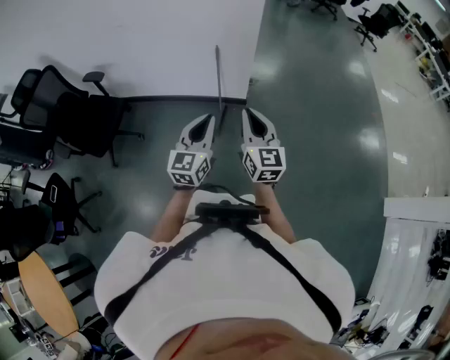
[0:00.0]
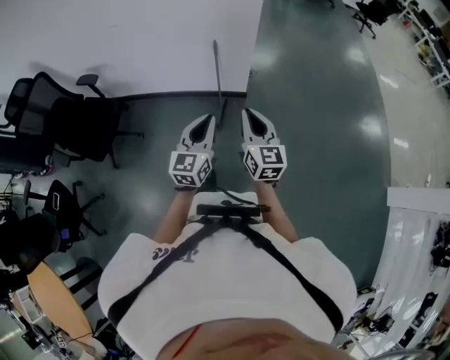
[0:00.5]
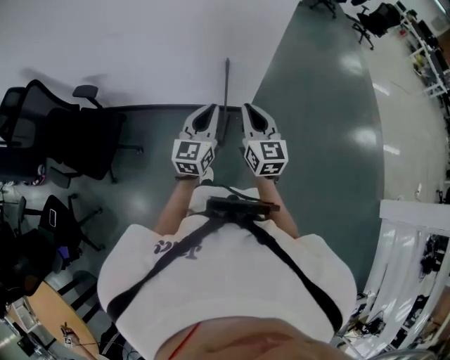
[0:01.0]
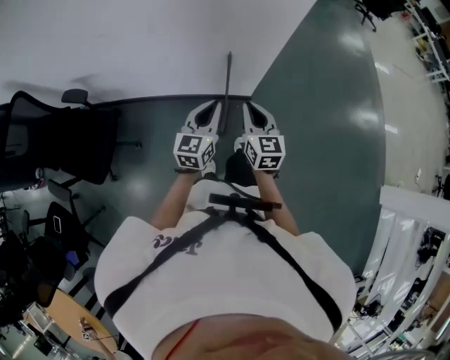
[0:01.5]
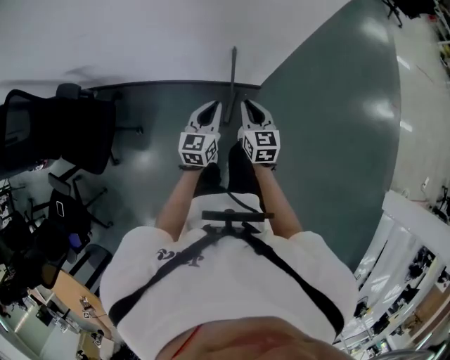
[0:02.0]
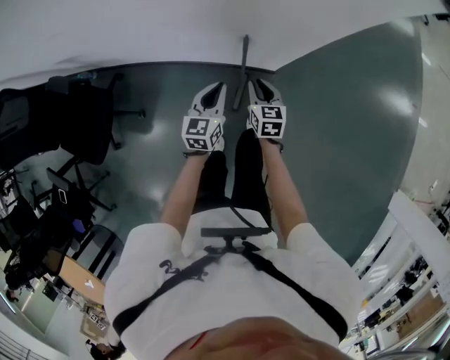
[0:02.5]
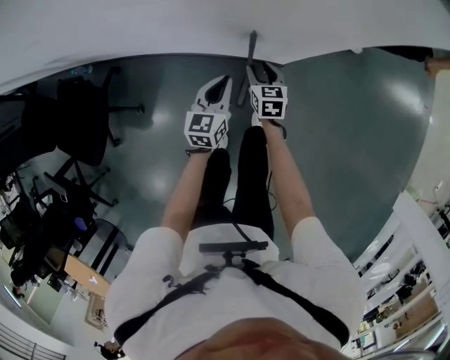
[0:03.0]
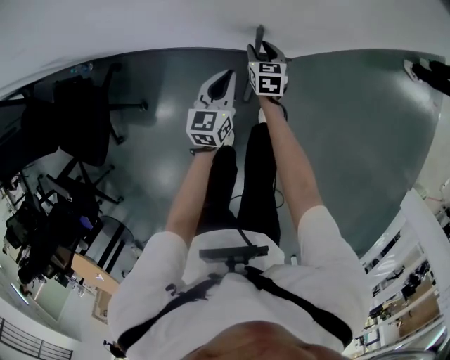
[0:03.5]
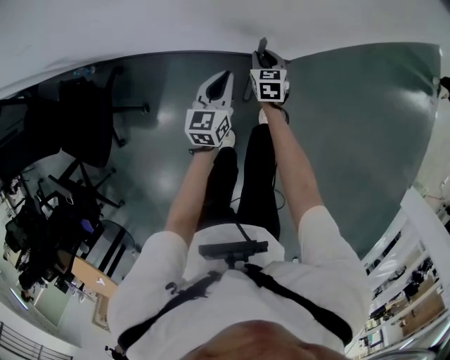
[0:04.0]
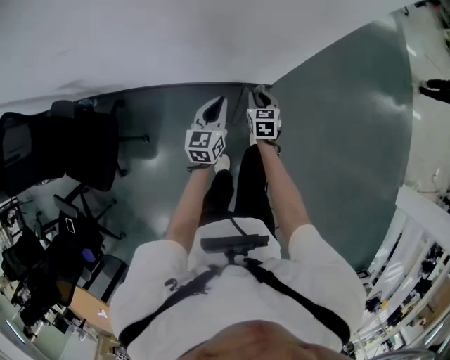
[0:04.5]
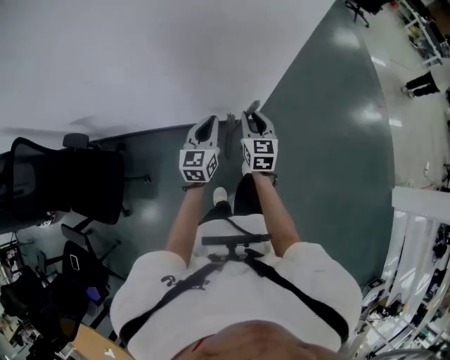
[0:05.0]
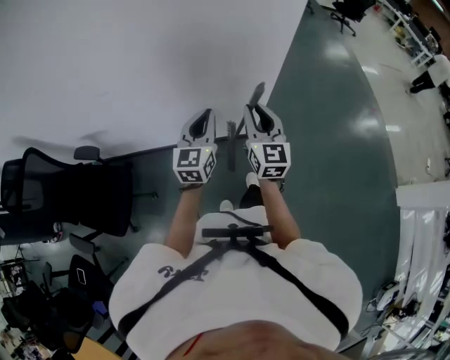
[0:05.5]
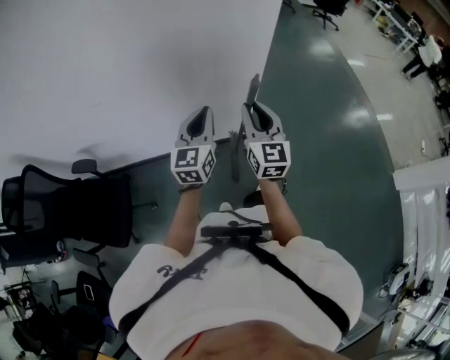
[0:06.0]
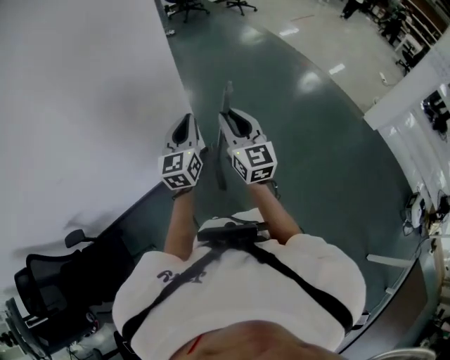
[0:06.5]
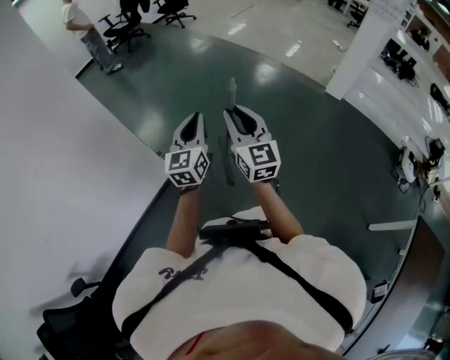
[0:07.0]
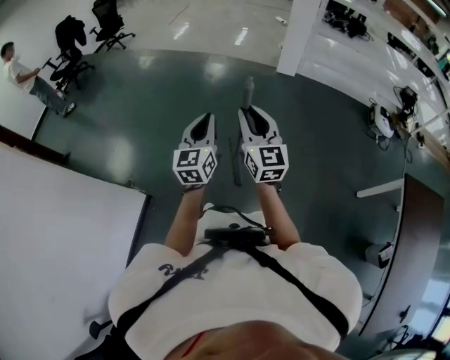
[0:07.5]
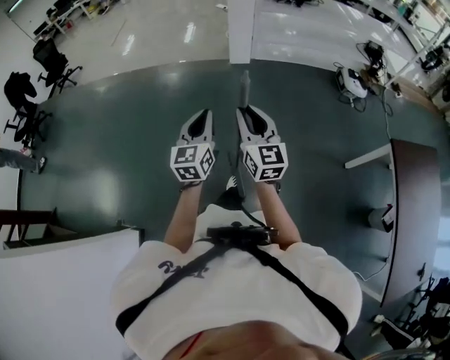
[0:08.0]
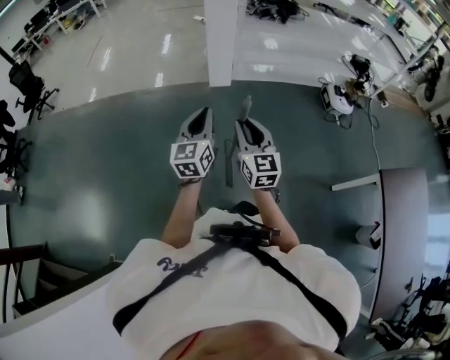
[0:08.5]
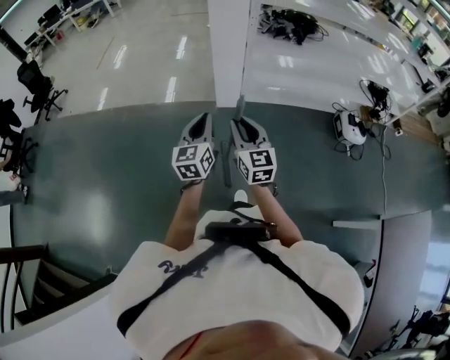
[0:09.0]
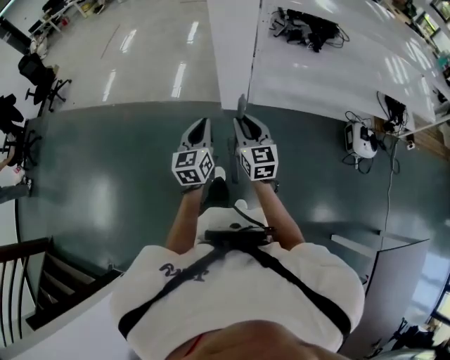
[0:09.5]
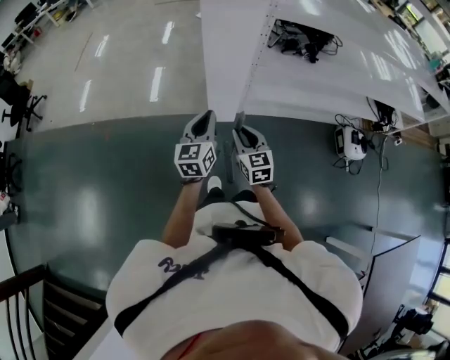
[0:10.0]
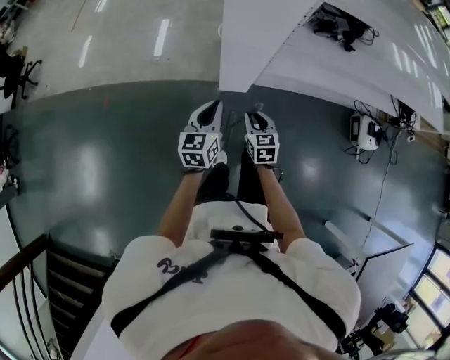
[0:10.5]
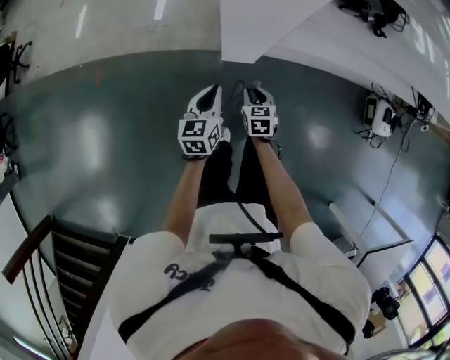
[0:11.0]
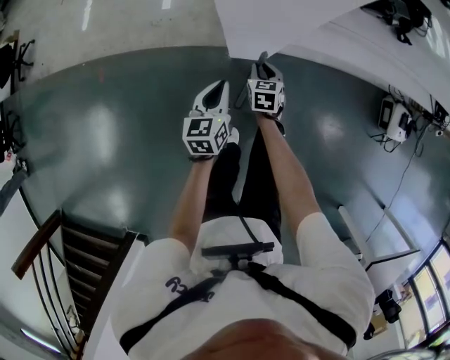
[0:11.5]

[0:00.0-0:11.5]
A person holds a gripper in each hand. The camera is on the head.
0:00.0 to 0:02.0: Both grippers are carried forward, about 40 cm. Both grippers move downward, roughly 20 cm. The right gripper changes its angle by about 30 degrees.
0:02.0 to 0:04.0: The left gripper goes about 20 cm downward and forward. Meanwhile the right gripper moves downward and forward, approximately 35 cm.
0:04.0 to 0:06.0: The right gripper heads upward and backward, covering roughly 60 cm, and tilts its fingers about 40 degrees upward. Meanwhile the left gripper goes about 40 cm upward, and changes its angle by roughly 30 degrees.
0:06.0 to 0:07.5: Both grippers are carried some 80 cm. The left gripper turns by roughly 60 degrees. Meanwhile the right gripper rotates roughly 60 degrees.
0:07.5 to 0:09.5: The pair of grippers is taken forward and to the right, about 90 cm.
0:09.5 to 0:11.5: The right gripper is displaced downward and forward by approximately 60 cm, and angles its fingers downward, by approximately 40 degrees. The left gripper goes approximately 50 cm forward and downward, and turns by some 20 degrees.

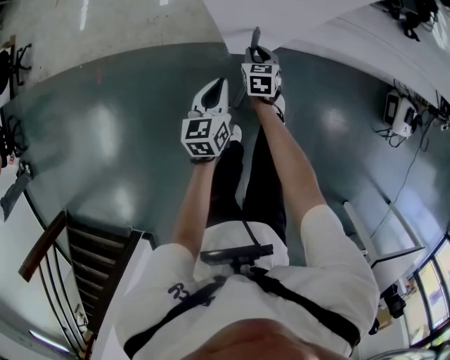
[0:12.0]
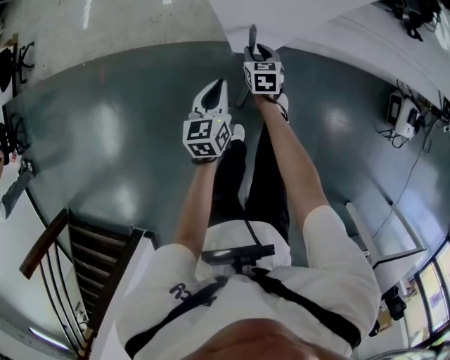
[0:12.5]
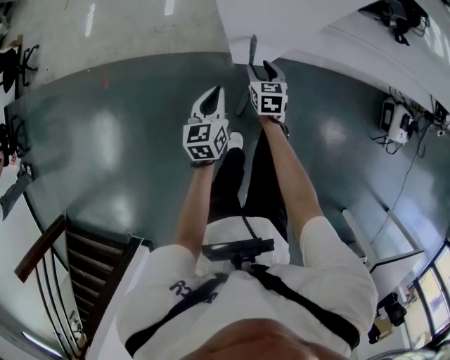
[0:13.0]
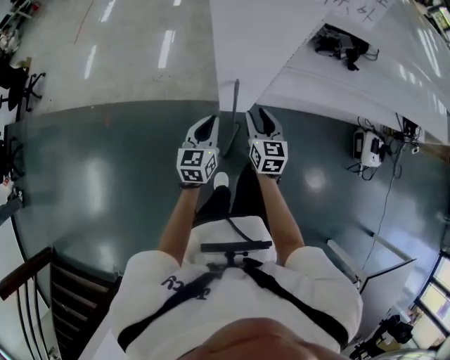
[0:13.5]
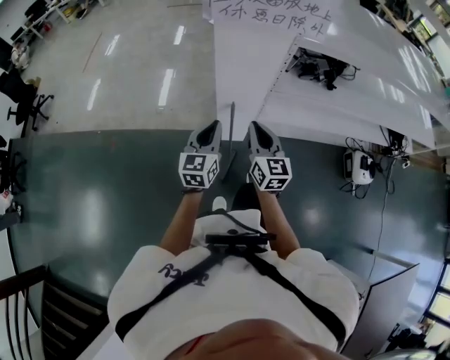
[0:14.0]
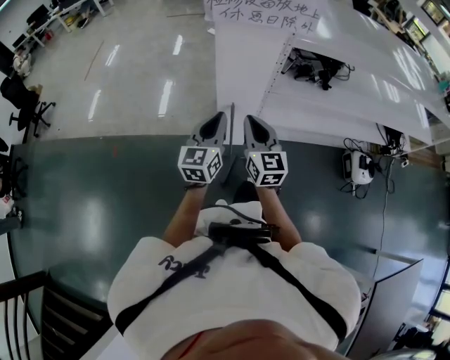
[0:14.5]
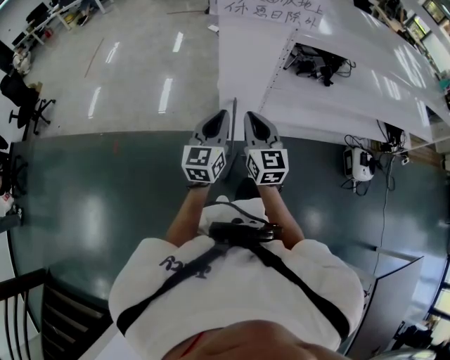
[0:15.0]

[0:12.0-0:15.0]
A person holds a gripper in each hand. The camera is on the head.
0:12.0 to 0:13.5: The right gripper shifts some 30 cm upward and backward, and swivels some 20 degrees. Meanwhile the left gripper is displaced upward by approximately 20 cm.
0:13.5 to 0:15.0: The right gripper goes some 25 cm upward and backward, rotates approximately 20 degrees, and closes up. Meanwhile the left gripper heads upward, covering approximately 20 cm.

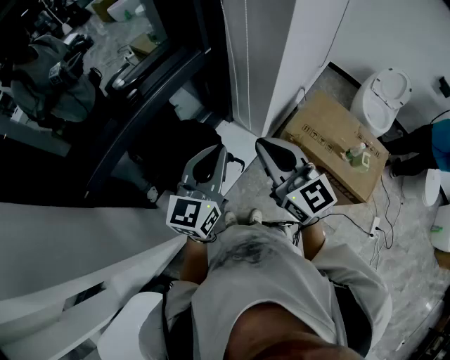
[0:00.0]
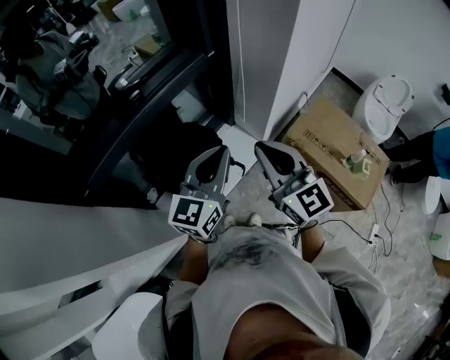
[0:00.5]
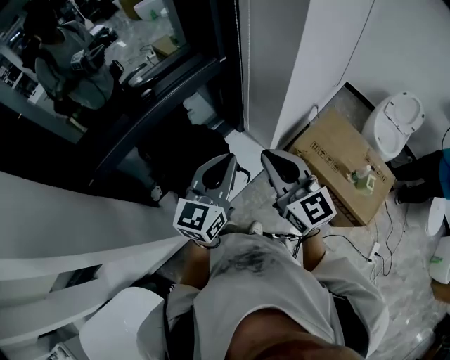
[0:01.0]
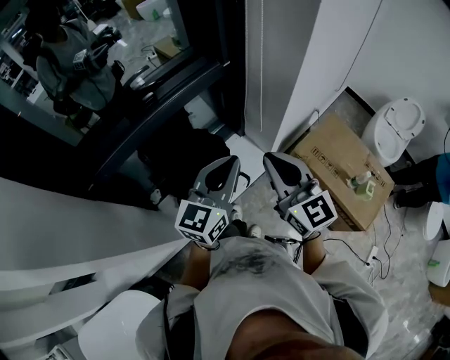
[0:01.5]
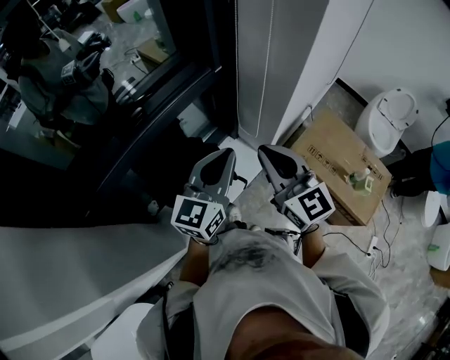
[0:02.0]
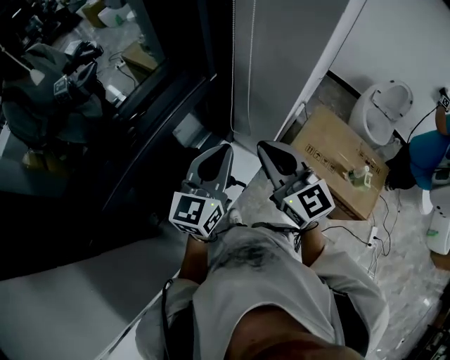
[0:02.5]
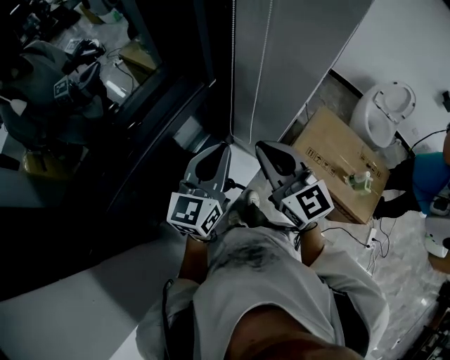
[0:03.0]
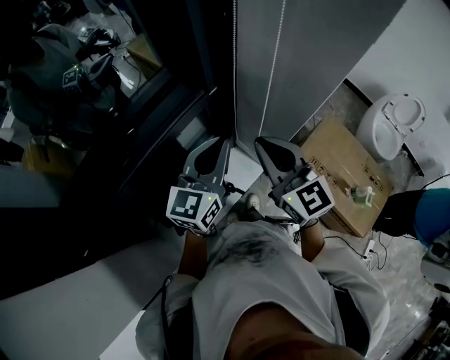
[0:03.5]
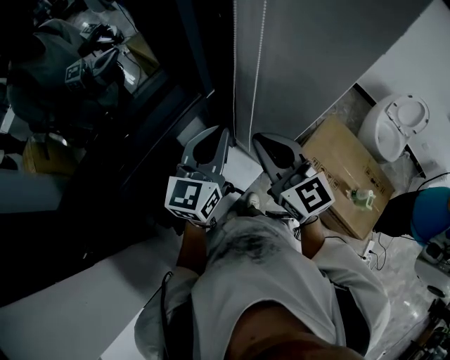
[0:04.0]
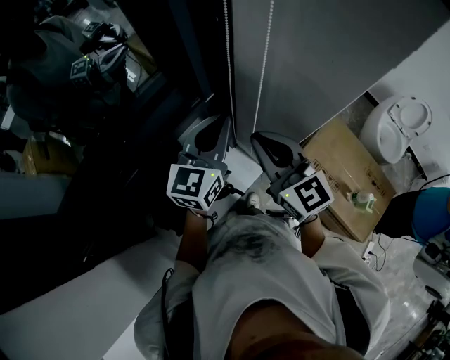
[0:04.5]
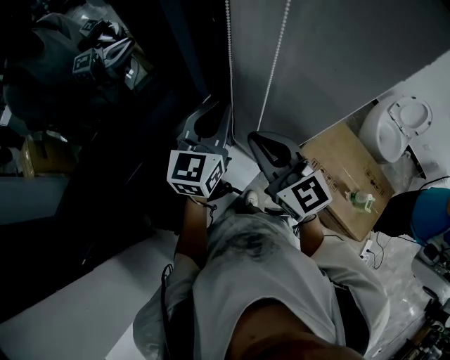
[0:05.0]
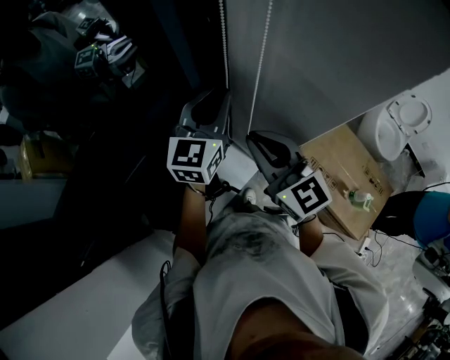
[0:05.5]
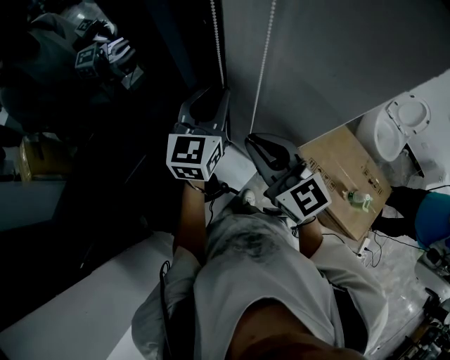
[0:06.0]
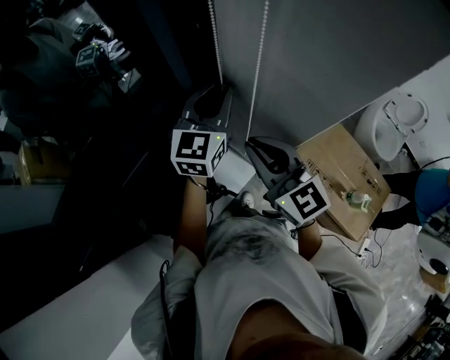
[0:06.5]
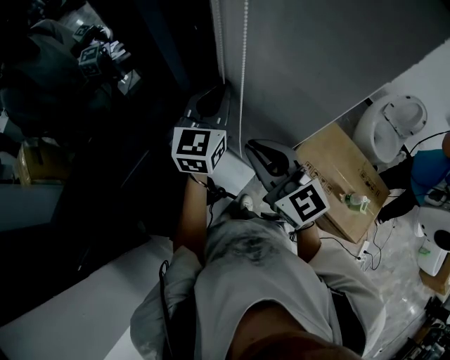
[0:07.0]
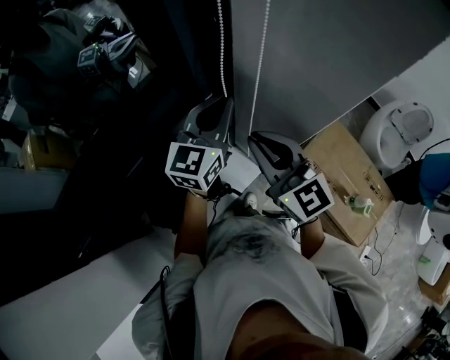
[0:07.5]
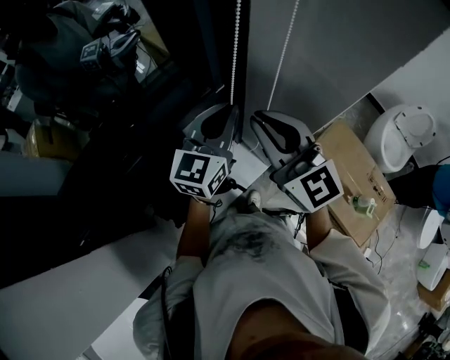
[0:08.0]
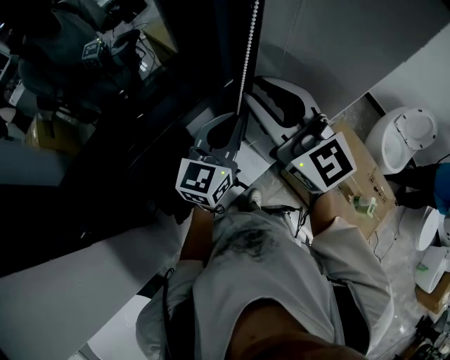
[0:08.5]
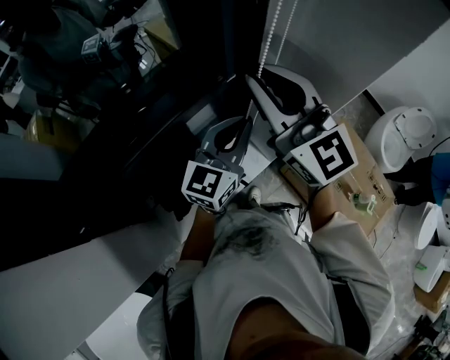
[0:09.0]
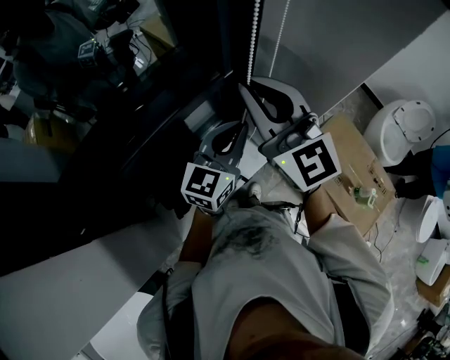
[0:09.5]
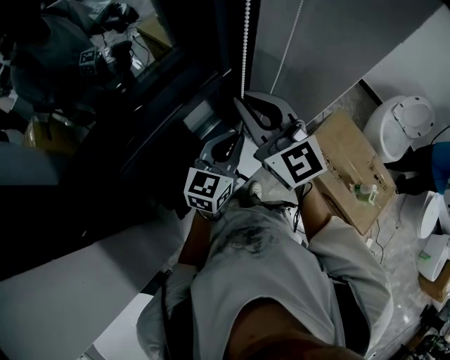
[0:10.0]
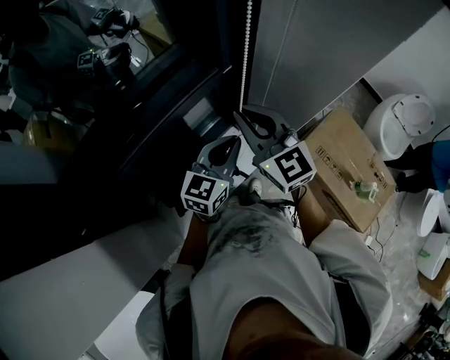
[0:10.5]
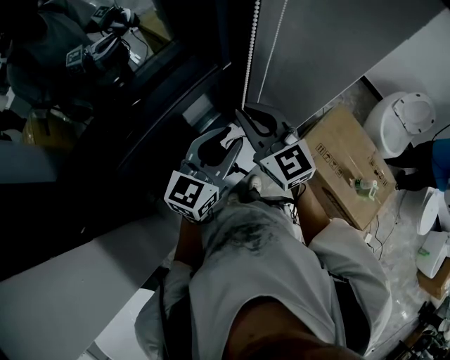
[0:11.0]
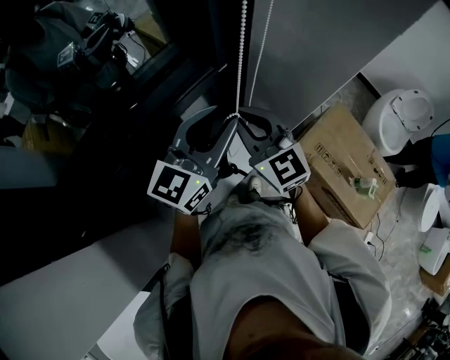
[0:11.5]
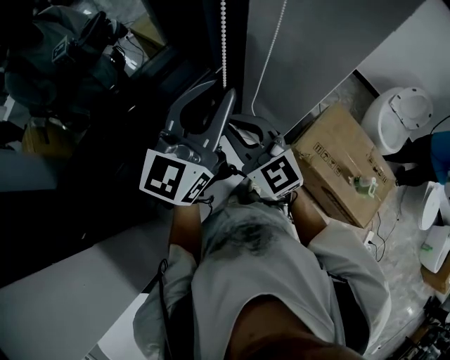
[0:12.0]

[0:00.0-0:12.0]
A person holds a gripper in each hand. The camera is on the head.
0:00.0 to 0:02.0: Both grippers travel together forward, roughly 10 cm.
0:02.0 to 0:04.0: The two grippers go some 20 cm forward.
0:04.0 to 0:06.0: The left gripper heads forward, covering roughly 10 cm.
0:06.0 to 0:08.0: The left gripper travels backward by approximately 10 cm, while the right gripper heads upward, covering roughly 5 cm.
0:08.0 to 0:10.0: The left gripper travels downward and backward by some 15 cm, while the right gripper heads to the left, covering some 5 cm, and goes upward and returns, some 10 cm each way.
0:10.0 to 0:12.0: The left gripper is displaced upward by roughly 20 cm, and rotates some 20 degrees; the right gripper heads downward, covering approximately 5 cm.
